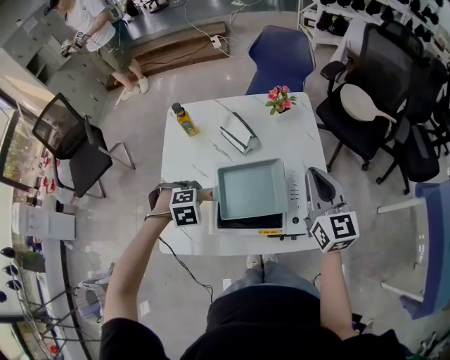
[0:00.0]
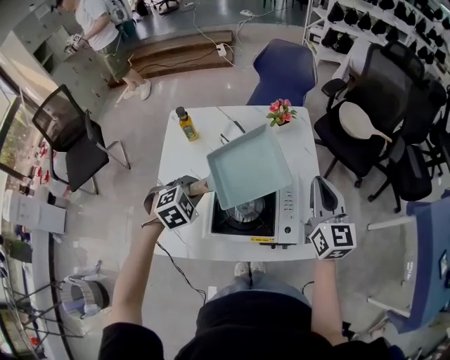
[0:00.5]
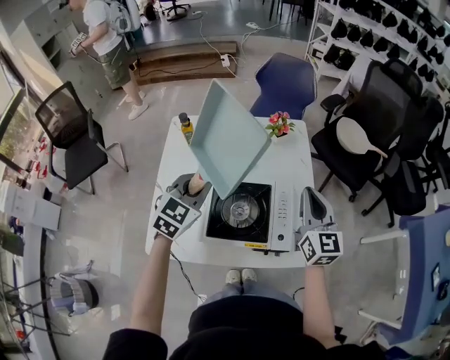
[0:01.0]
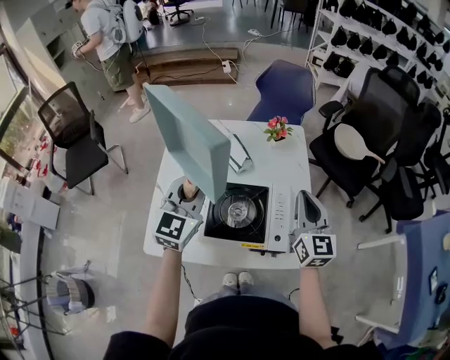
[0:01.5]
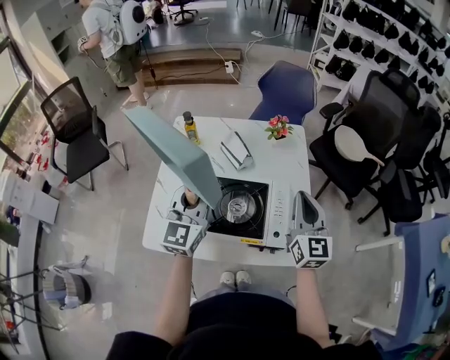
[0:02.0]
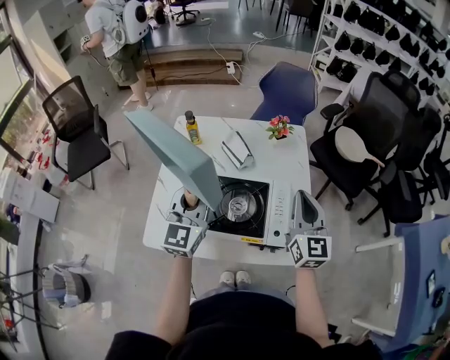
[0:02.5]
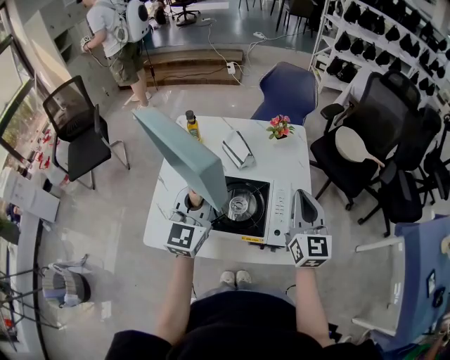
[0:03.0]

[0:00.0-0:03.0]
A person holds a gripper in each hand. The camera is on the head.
0:00.0 to 0:01.5: The left gripper is displaced upward by about 25 cm, and points its fingers approximately 70 degrees further upward.
0:01.5 to 0:03.0: The grippers stay close to where they were, moving slightly.

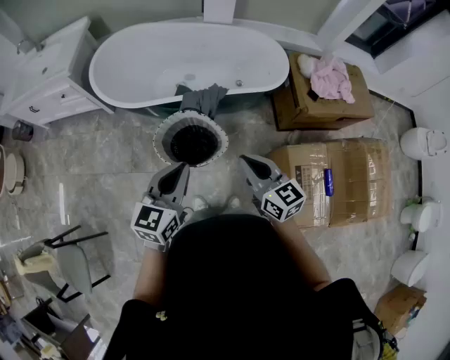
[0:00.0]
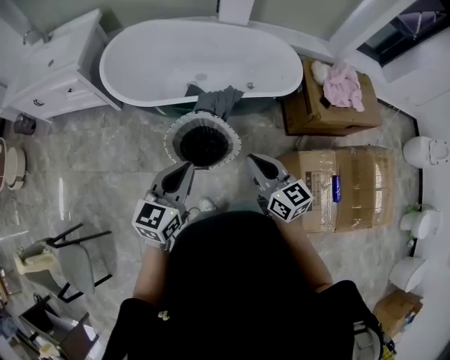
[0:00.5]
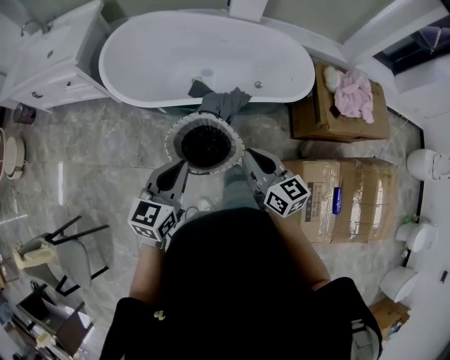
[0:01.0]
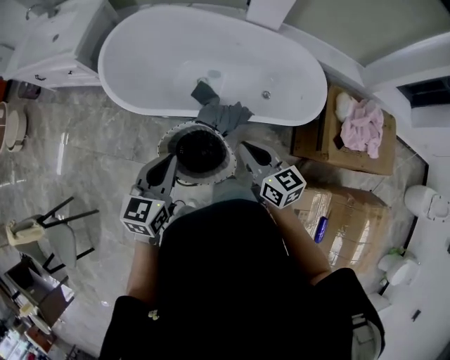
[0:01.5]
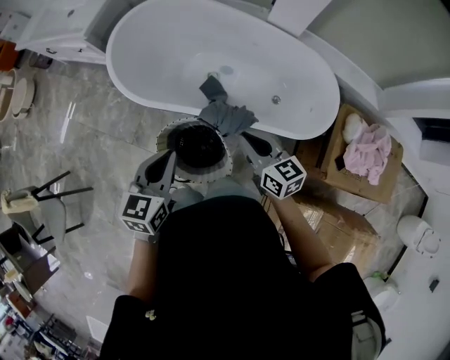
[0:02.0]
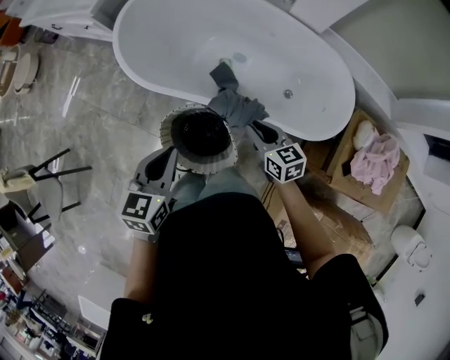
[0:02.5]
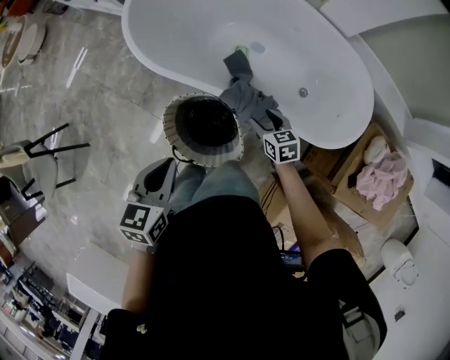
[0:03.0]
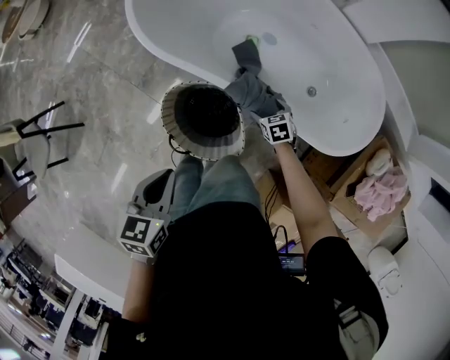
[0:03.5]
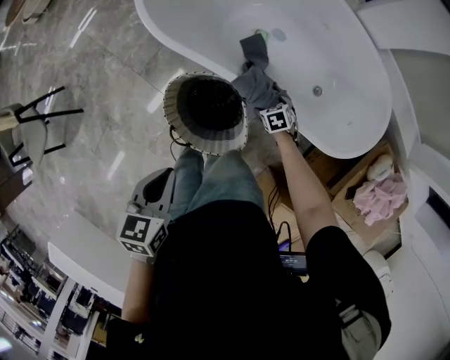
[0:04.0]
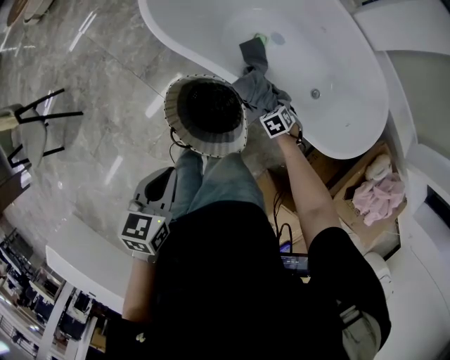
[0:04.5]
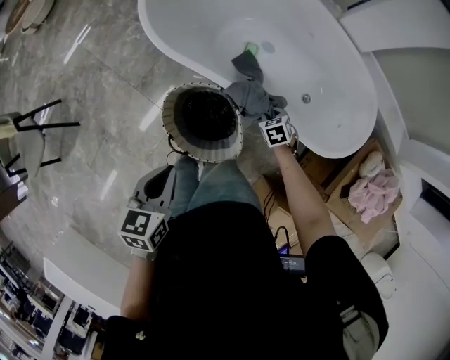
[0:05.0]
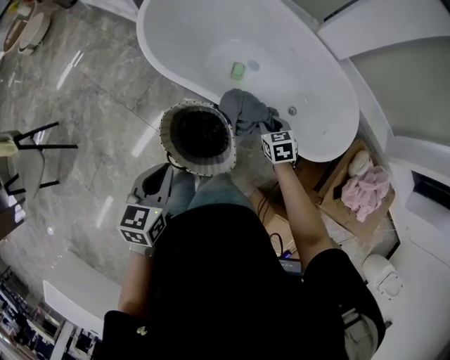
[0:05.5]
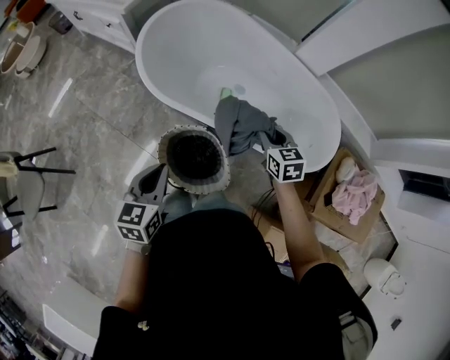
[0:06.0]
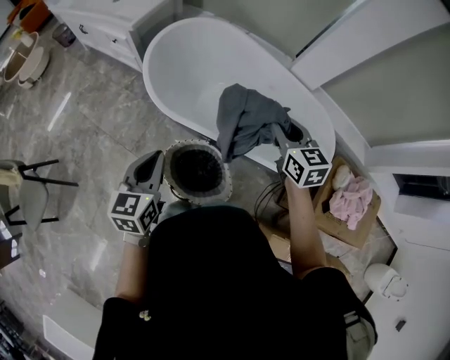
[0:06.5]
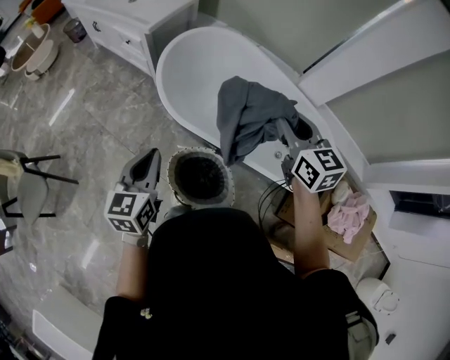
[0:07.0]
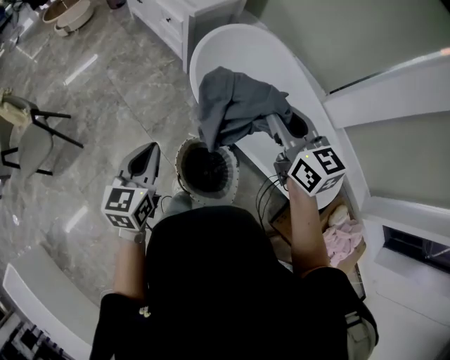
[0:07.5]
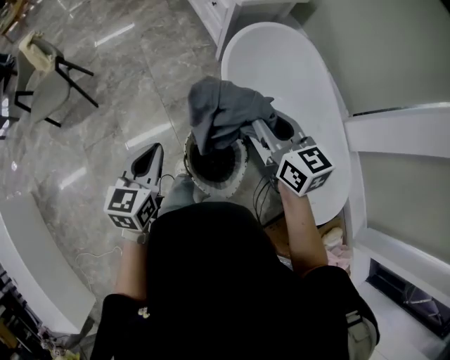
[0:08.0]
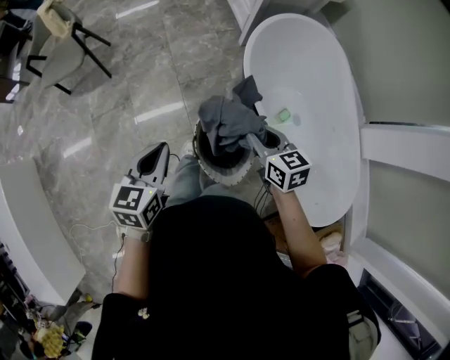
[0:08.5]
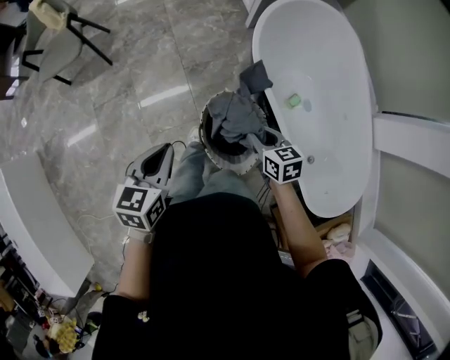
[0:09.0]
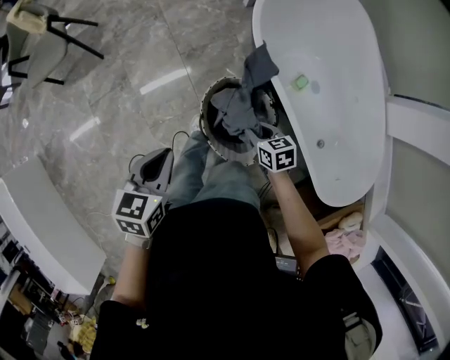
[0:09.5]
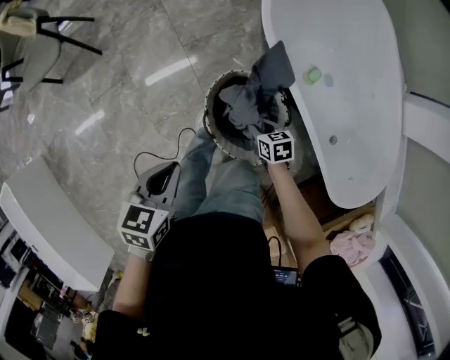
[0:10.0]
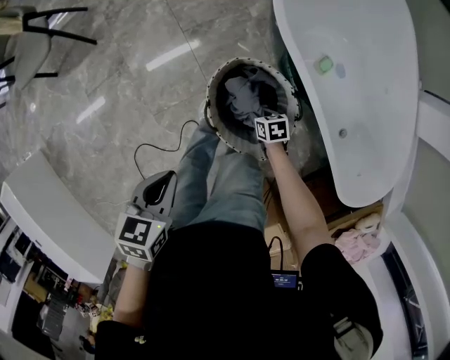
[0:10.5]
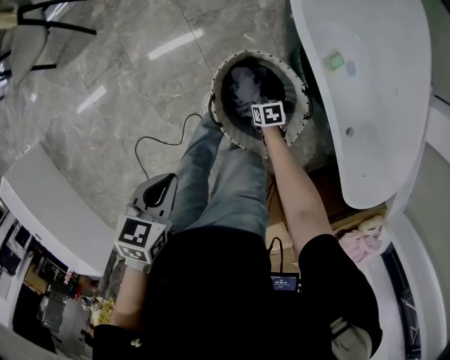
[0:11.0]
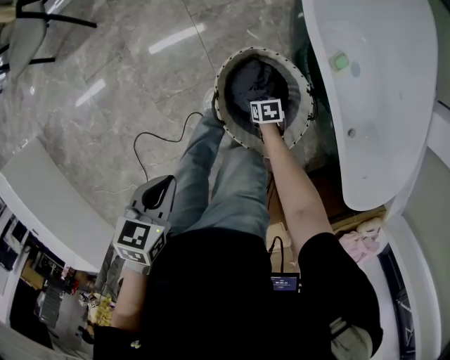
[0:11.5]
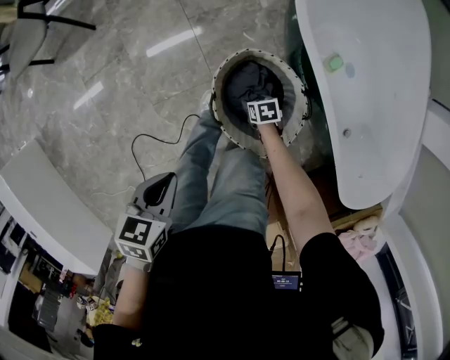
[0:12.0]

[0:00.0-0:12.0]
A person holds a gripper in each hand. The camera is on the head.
0:00.0 to 0:02.0: The right gripper moves roughly 40 cm, and turns by some 20 degrees; the left gripper ends up about 30 cm from where it was, and turns by some 30 degrees.
0:02.0 to 0:04.0: The left gripper shifts about 15 cm downward, to the left and backward, and swivels approximately 30 degrees, while the right gripper goes some 50 cm downward, tilts its fingers roughly 50 degrees downward, and opens up.
0:04.0 to 0:06.0: The right gripper shifts about 40 cm upward, points its fingers approximately 30 degrees further upward, and closes up; the left gripper travels upward by roughly 10 cm.
0:06.0 to 0:08.0: The left gripper moves roughly 20 cm, and swivels approximately 30 degrees; the right gripper changes place by about 35 cm, and swivels some 40 degrees.
0:08.0 to 0:10.0: The left gripper moves downward, some 20 cm, and swivels approximately 30 degrees. The right gripper travels downward by about 50 cm, and tilts its fingers some 40 degrees downward.
0:10.0 to 0:12.0: The right gripper goes roughly 20 cm downward, and opens its fingers, while the left gripper goes roughly 10 cm downward.

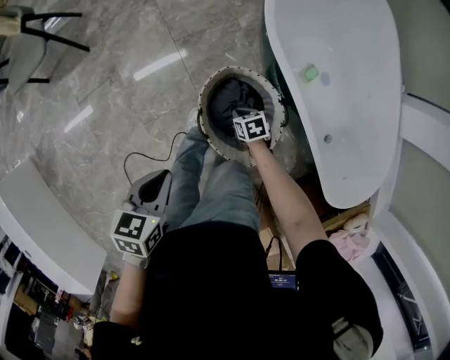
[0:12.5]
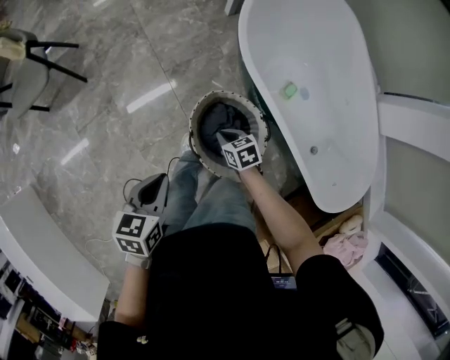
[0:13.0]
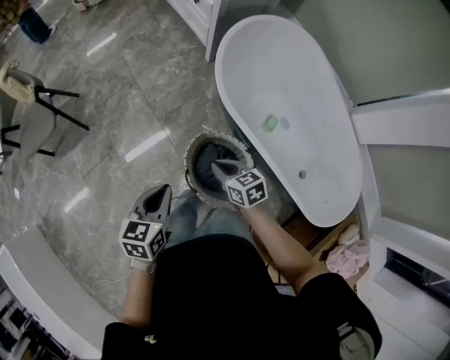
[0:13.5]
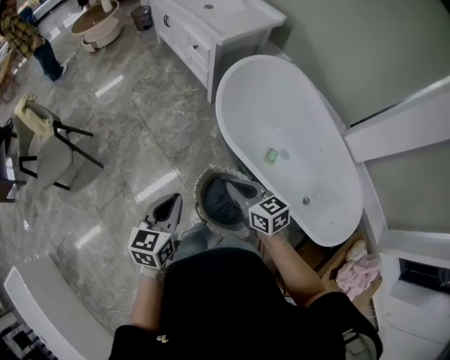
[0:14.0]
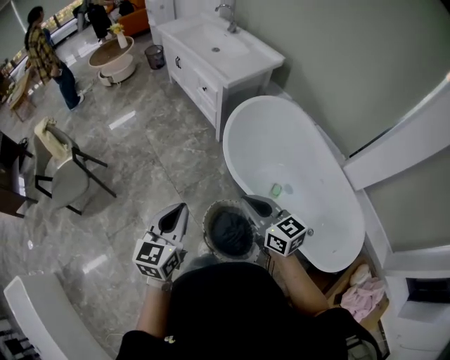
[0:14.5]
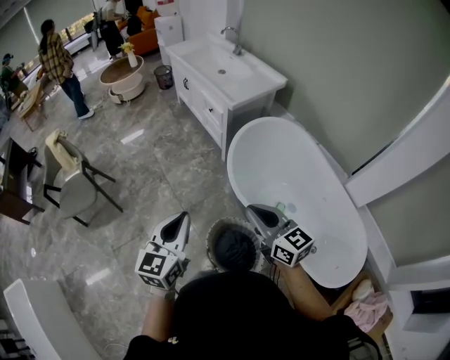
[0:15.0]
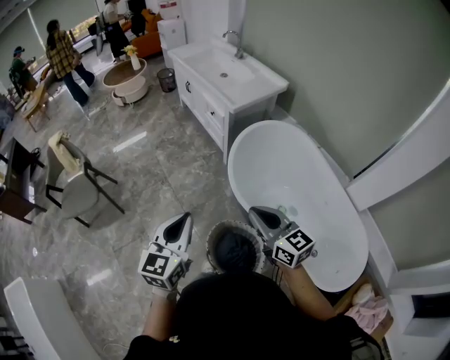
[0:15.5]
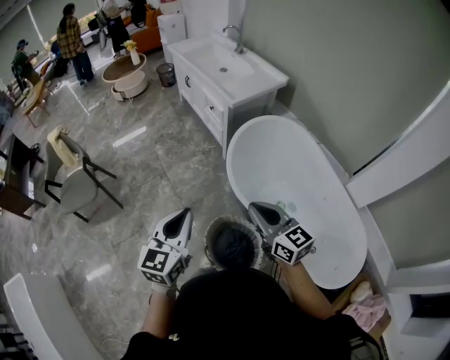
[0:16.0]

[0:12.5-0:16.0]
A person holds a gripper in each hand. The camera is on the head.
0:12.5 to 0:14.5: The right gripper is displaced upward by approximately 60 cm, and tilts its fingers some 50 degrees upward. The left gripper goes roughly 35 cm upward, and points its fingers about 40 degrees further upward.
0:14.5 to 0:16.0: Both grippers travel together upward, approximately 5 cm.

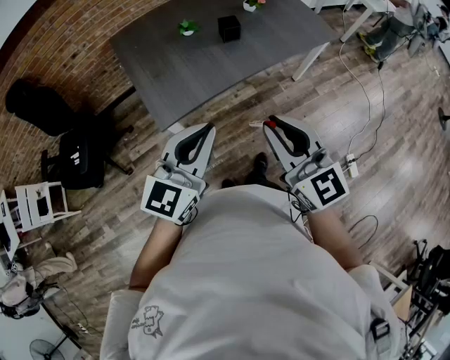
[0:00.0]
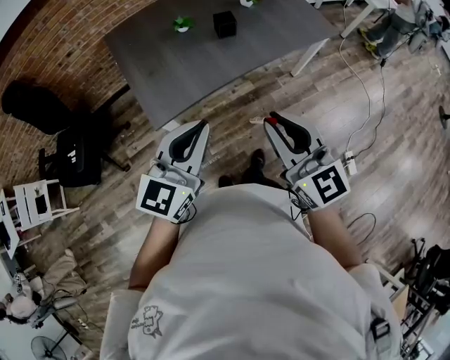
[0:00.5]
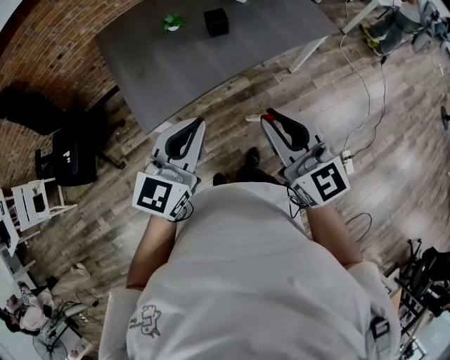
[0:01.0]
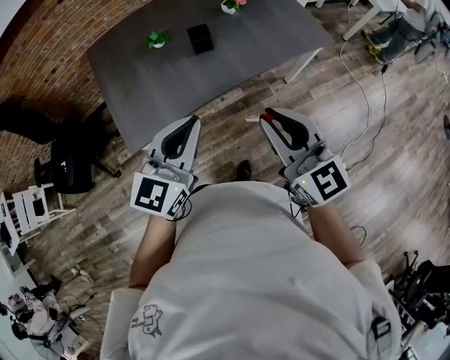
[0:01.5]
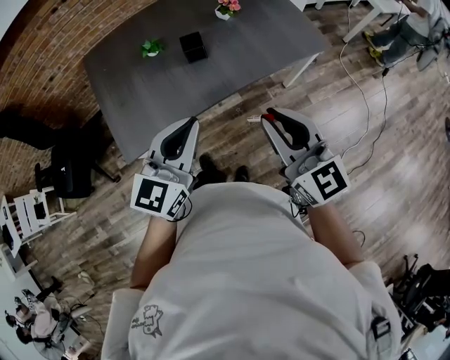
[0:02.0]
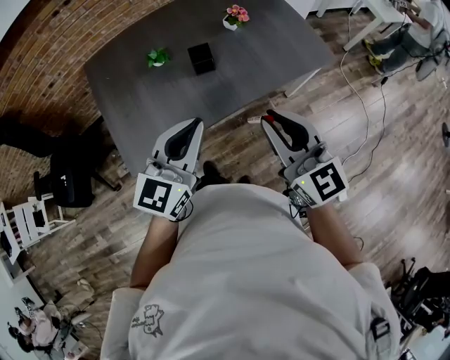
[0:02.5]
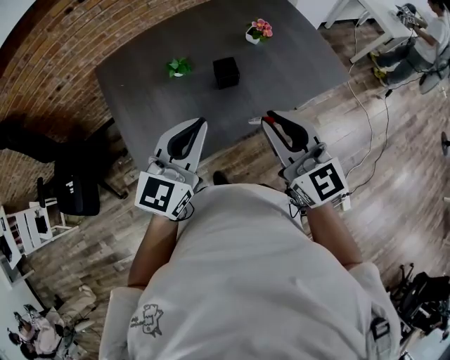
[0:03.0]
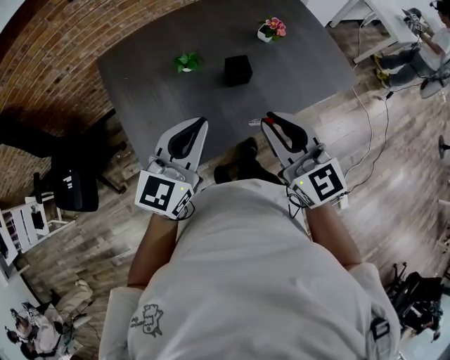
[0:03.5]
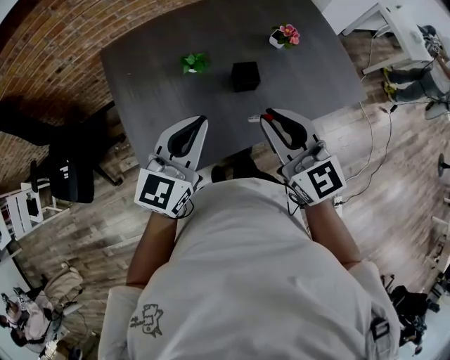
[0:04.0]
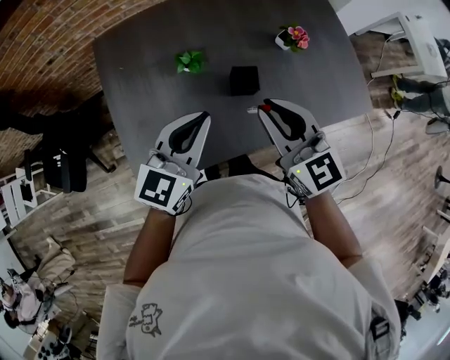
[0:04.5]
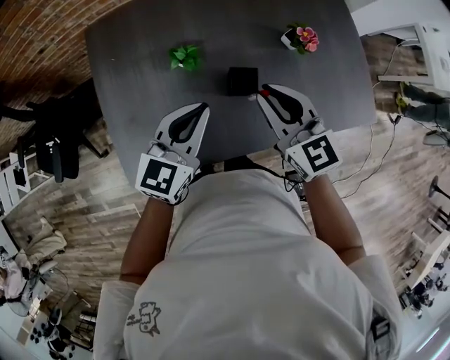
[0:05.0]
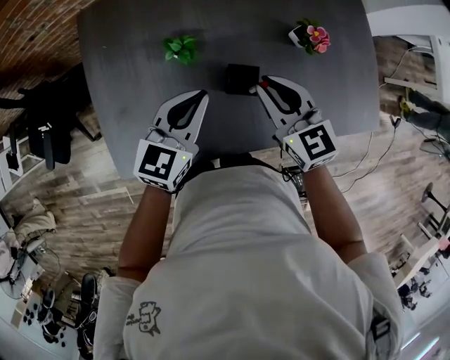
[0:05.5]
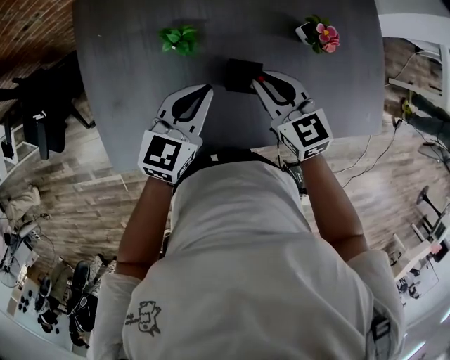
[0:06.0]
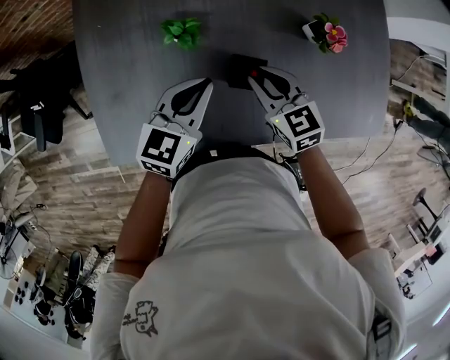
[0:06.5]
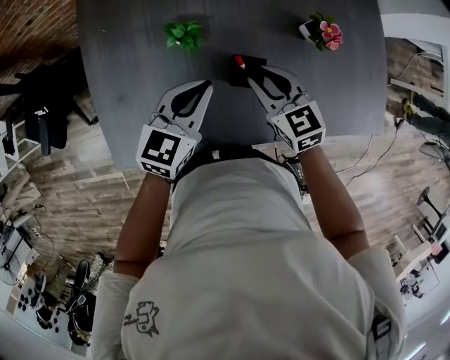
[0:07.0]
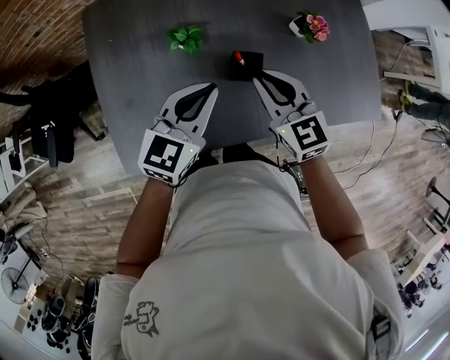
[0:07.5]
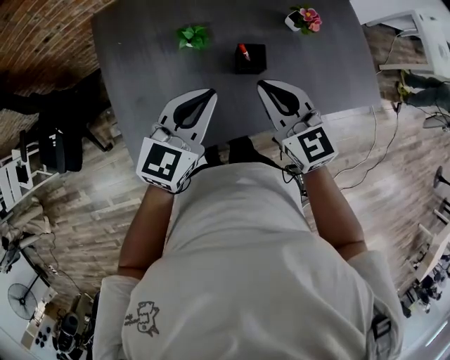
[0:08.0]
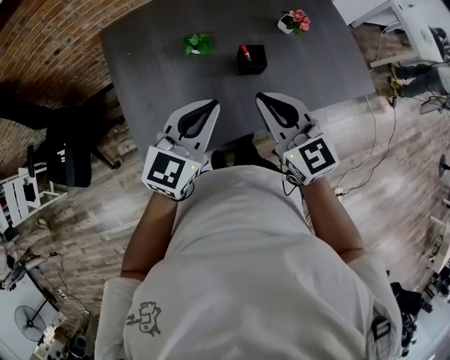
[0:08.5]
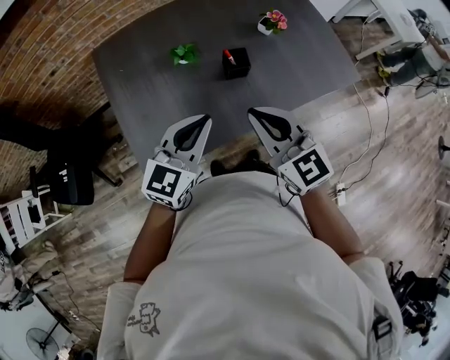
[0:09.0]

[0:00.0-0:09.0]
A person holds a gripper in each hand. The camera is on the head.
0:00.0 to 0:02.0: Both grippers travel together forward and to the right, about 25 cm.
0:02.0 to 0:04.5: Both grippers travel together forward and to the left, approximately 30 cm.
0:04.5 to 0:07.0: Both grippers move downward and forward, some 20 cm. The right gripper turns by approximately 20 degrees.
0:07.0 to 0:09.0: Both grippers travel together backward and upward, approximately 30 cm. The right gripper turns by some 30 degrees, and closes. Meanwhile the left gripper changes its angle by approximately 20 degrees.
